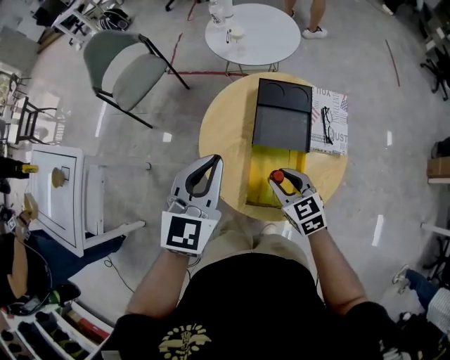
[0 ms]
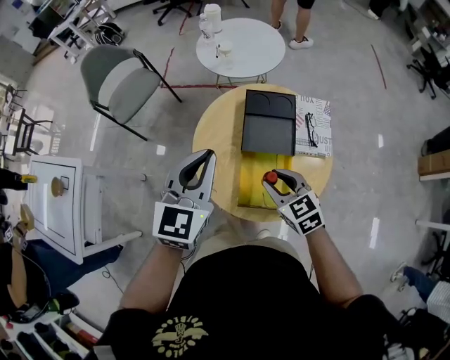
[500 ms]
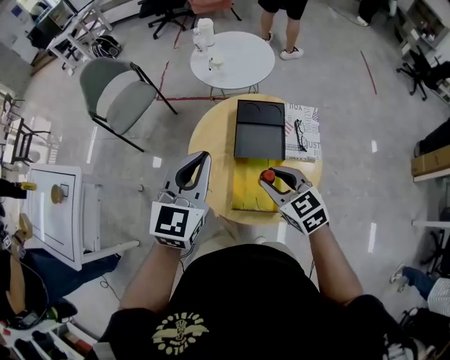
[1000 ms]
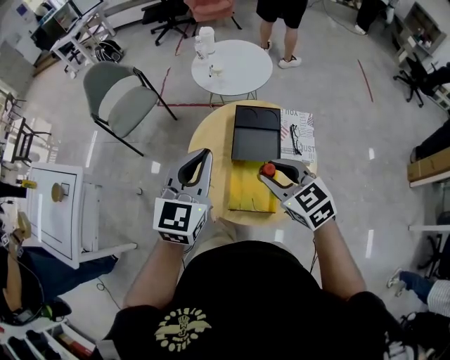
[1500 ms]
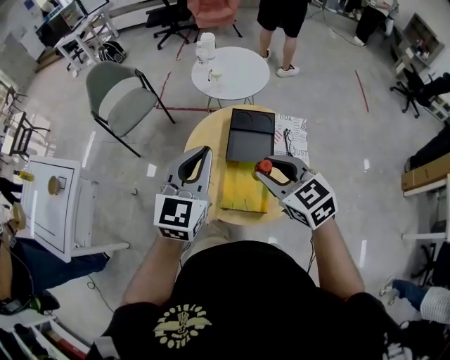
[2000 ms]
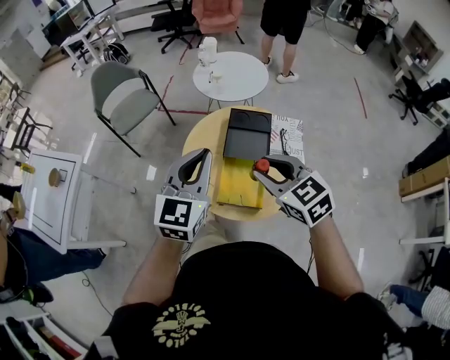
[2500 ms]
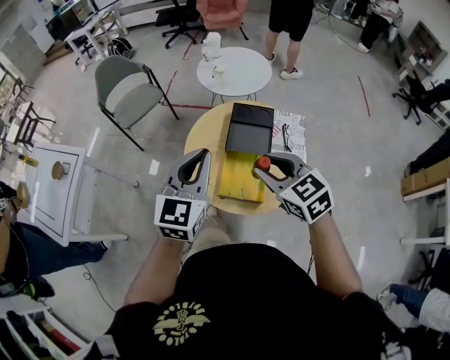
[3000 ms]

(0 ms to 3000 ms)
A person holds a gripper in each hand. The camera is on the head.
0 ms - 1500 ms: The left gripper shifts roughly 10 cm upward, while the right gripper shifts about 20 cm upward.
1500 ms - 3000 ms: Both grippers travel together backward, roughly 5 cm.

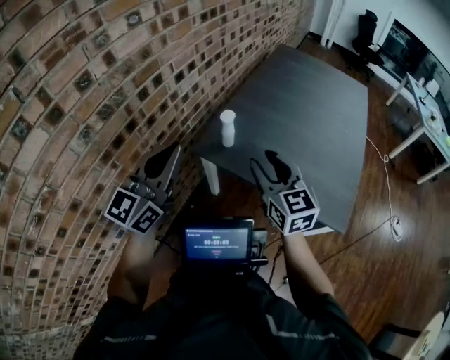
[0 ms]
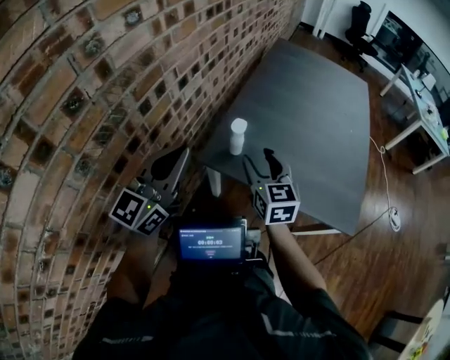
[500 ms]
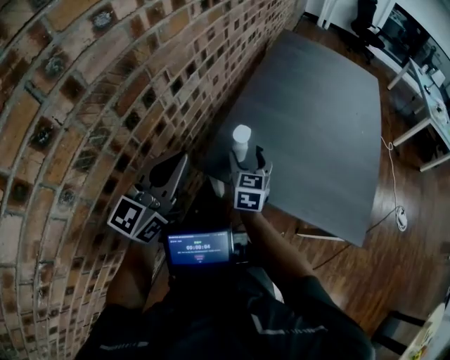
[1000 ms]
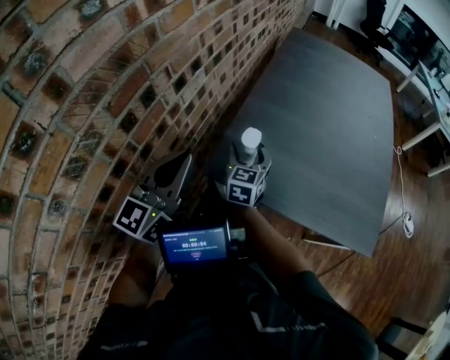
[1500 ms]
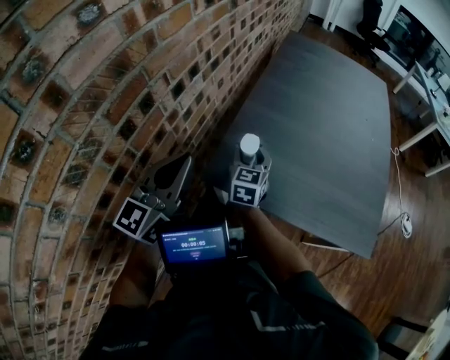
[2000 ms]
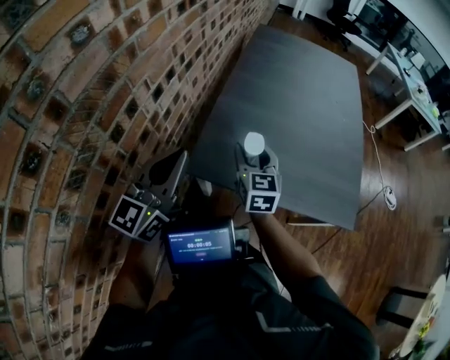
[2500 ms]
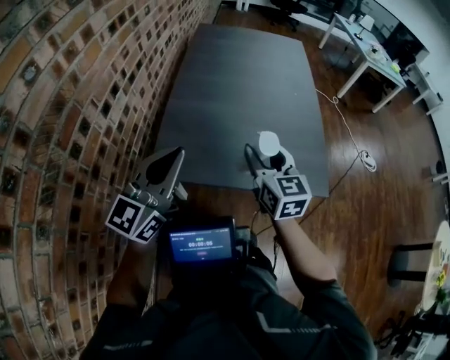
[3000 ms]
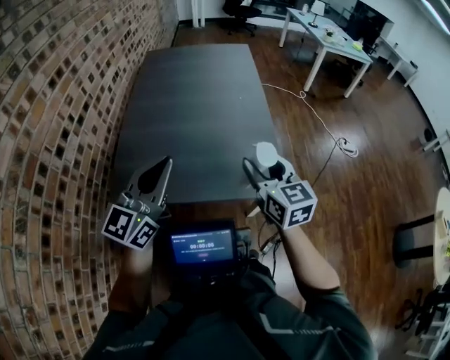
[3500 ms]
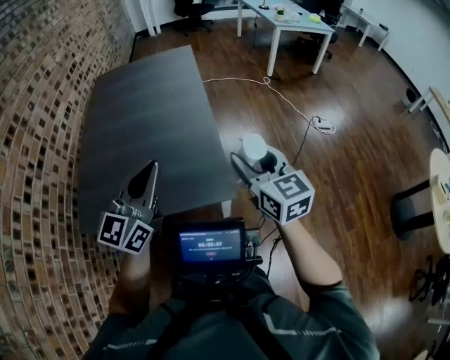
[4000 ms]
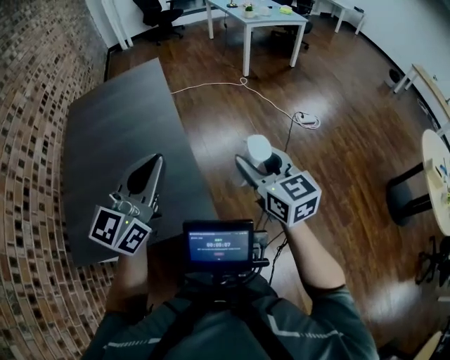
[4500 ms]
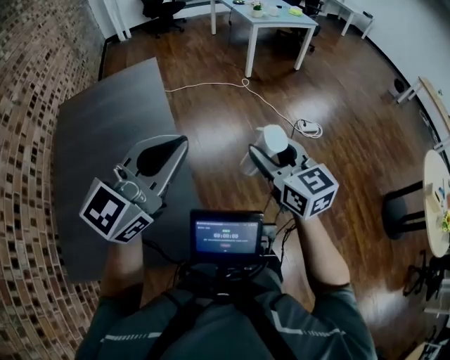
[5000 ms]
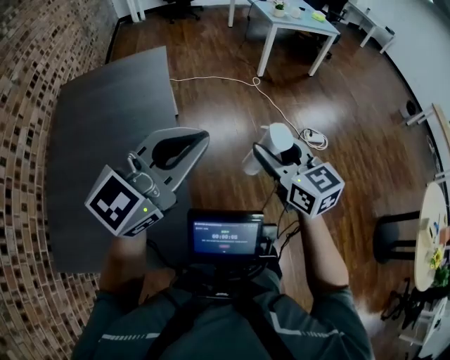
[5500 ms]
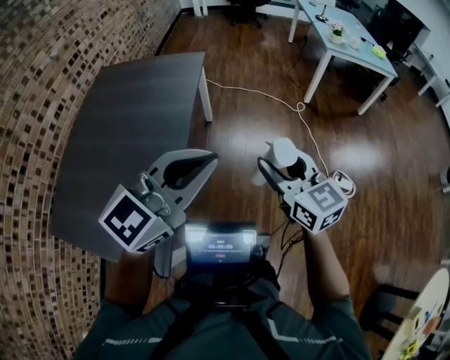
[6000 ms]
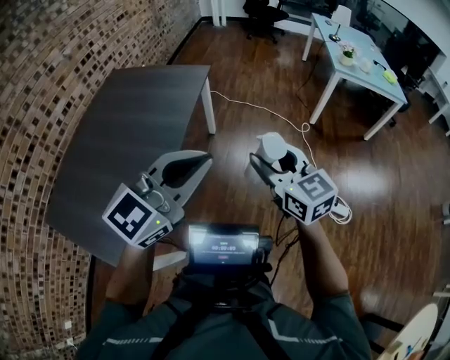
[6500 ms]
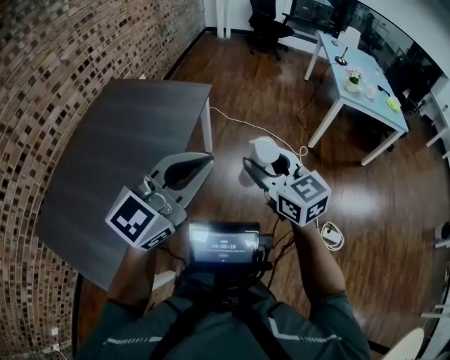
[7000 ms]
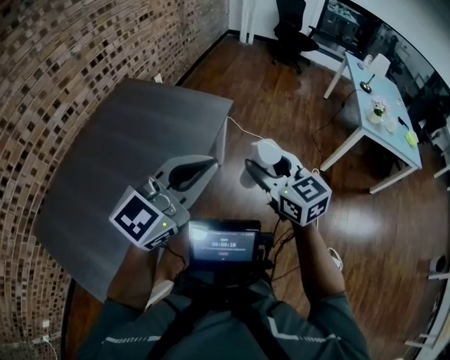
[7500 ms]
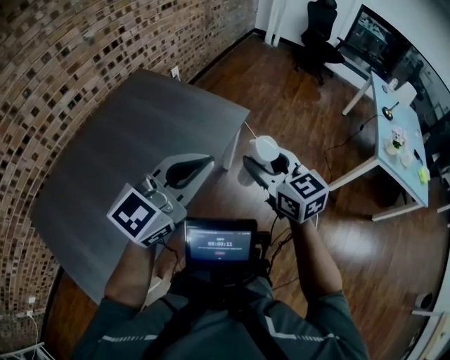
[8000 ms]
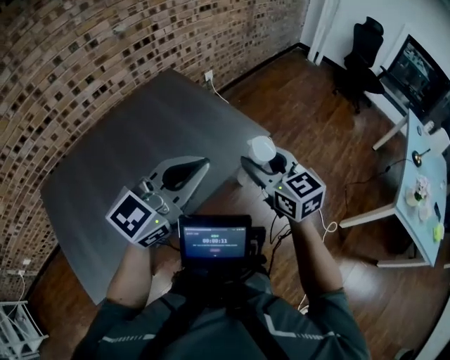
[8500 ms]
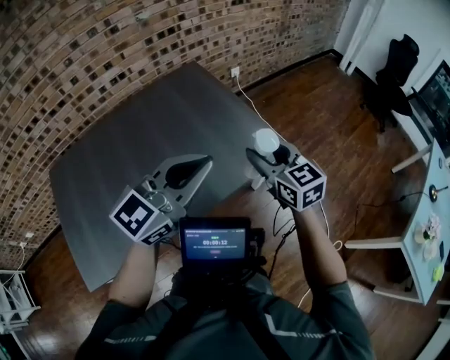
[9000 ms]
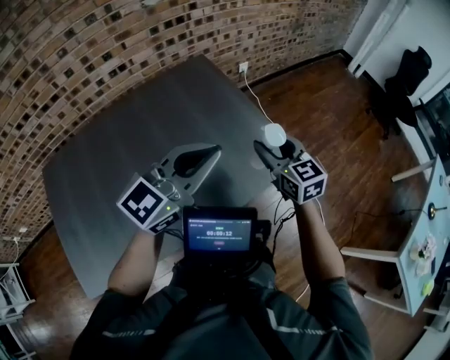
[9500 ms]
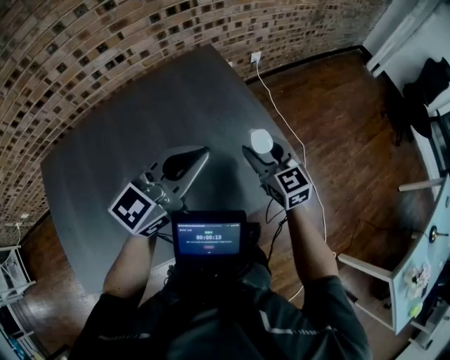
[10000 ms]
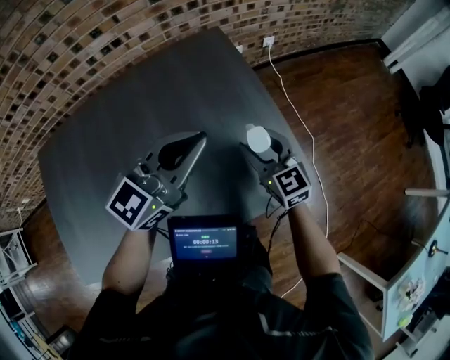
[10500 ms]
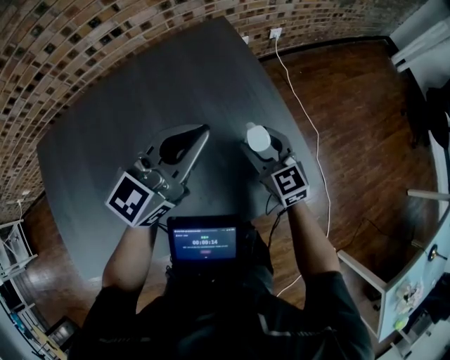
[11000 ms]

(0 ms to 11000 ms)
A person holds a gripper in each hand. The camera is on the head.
0 ms - 2000 ms: The left gripper heads forward, downward and to the left, covering approximately 20 cm. The right gripper shifts roughly 35 cm forward, downward and to the left, and turns by about 30 degrees.
2000 ms - 3500 ms: The right gripper heads to the right and upward, covering some 50 cm, while the left gripper moves to the right, roughly 35 cm, and changes its angle by some 30 degrees.
3500 ms - 5500 ms: The pair of grippers is taken to the right and forward, some 50 cm. The left gripper changes its angle by approximately 30 degrees.
5500 ms - 7500 ms: The left gripper moves about 35 cm, and swivels about 40 degrees. Meanwhile the right gripper ends up about 40 cm from where it was, and changes its angle by about 40 degrees.
7500 ms - 9000 ms: The left gripper moves some 25 cm, and rotates about 30 degrees. The right gripper shifts by about 30 cm, and swivels some 30 degrees.
9000 ms - 11000 ms: The left gripper moves forward, approximately 30 cm, while the right gripper moves forward, downward and to the left, roughly 30 cm.

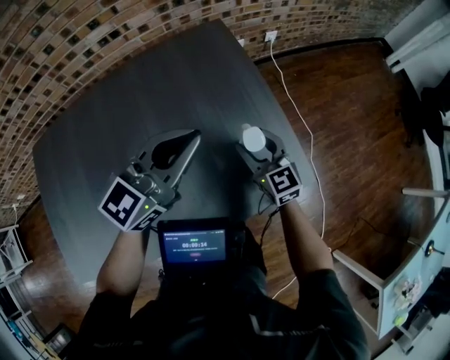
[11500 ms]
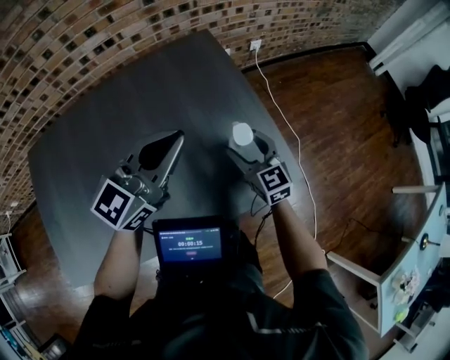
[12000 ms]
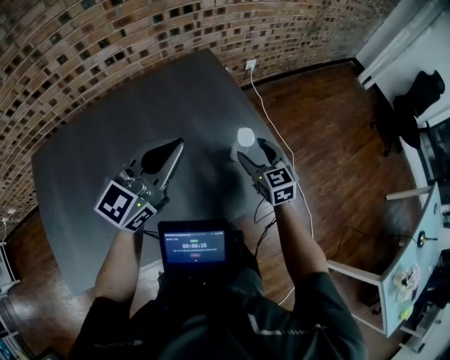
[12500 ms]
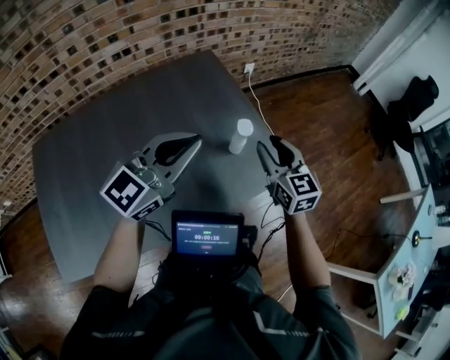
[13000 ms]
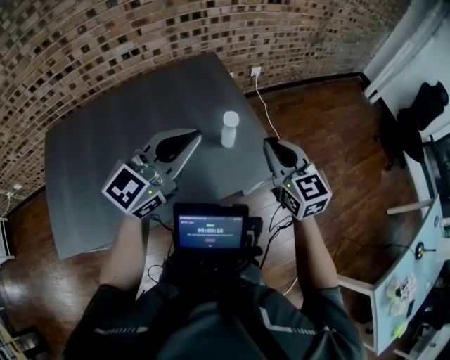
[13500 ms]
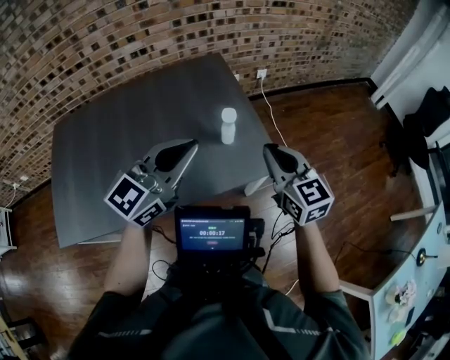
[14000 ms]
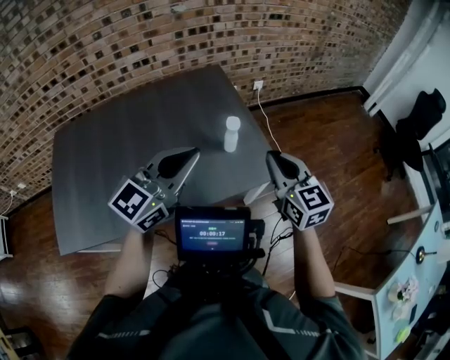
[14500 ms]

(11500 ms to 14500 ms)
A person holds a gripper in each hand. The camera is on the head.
11500 ms - 13000 ms: The right gripper moves upward, backward and to the right, about 20 cm; the left gripper is displaced backward and upward by some 15 cm.
13000 ms - 14500 ms: The left gripper travels to the right and backward by approximately 10 cm; the right gripper goes roughly 15 cm to the right, backward and upward, and closes its fingers.

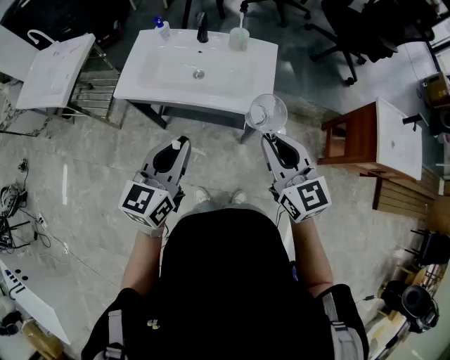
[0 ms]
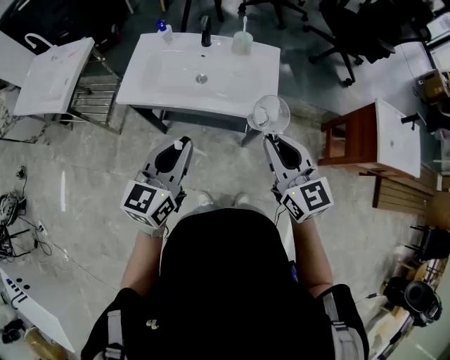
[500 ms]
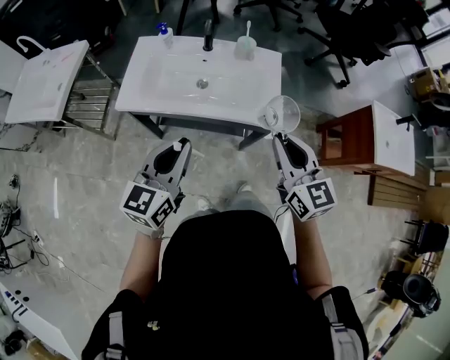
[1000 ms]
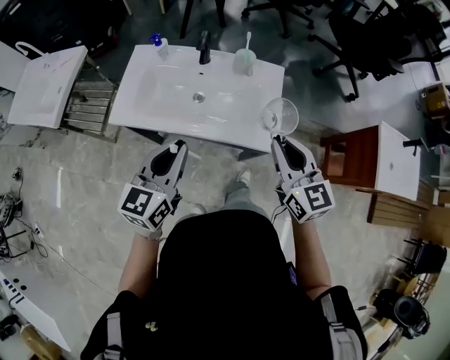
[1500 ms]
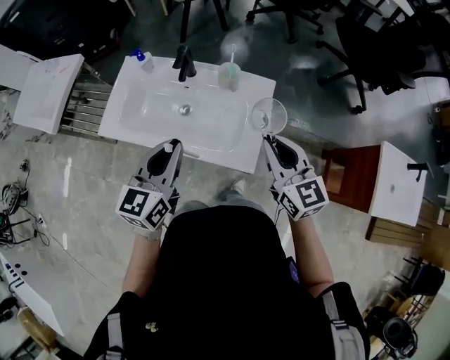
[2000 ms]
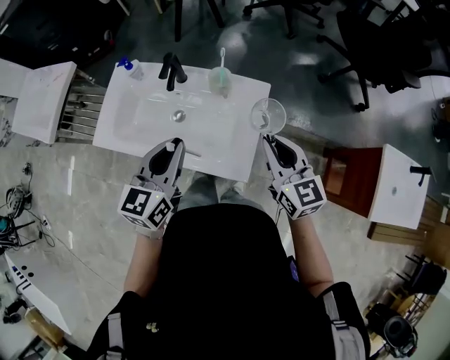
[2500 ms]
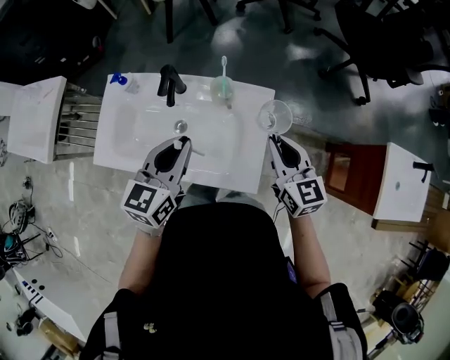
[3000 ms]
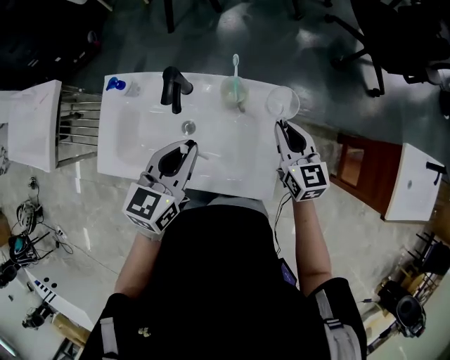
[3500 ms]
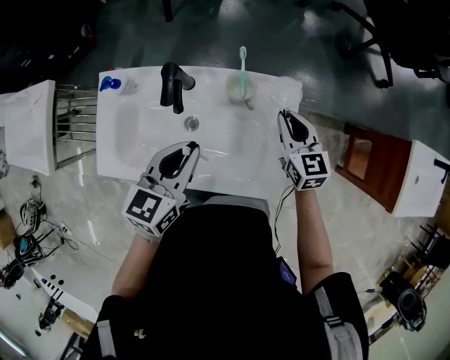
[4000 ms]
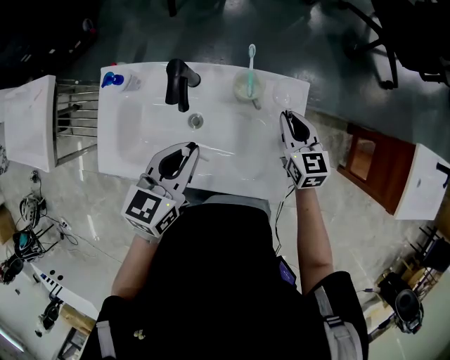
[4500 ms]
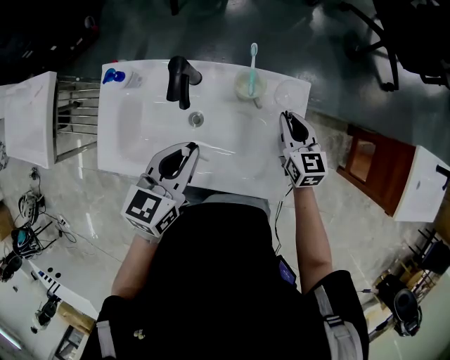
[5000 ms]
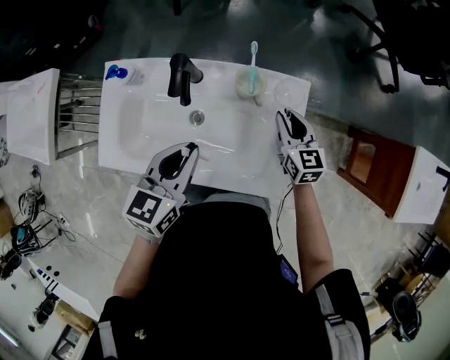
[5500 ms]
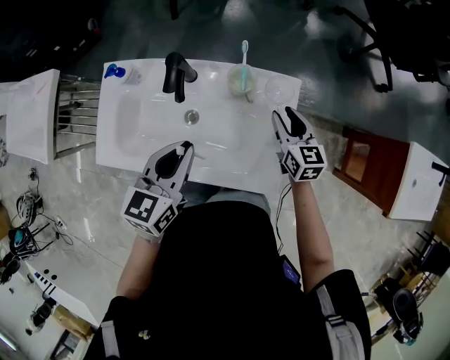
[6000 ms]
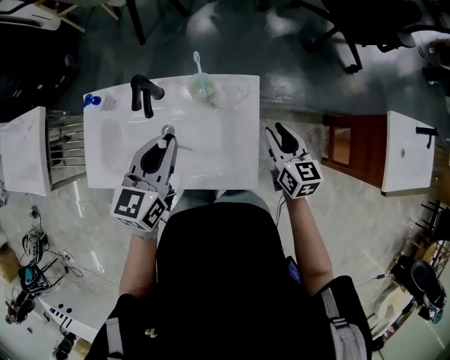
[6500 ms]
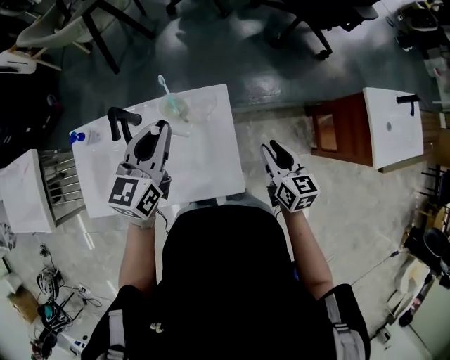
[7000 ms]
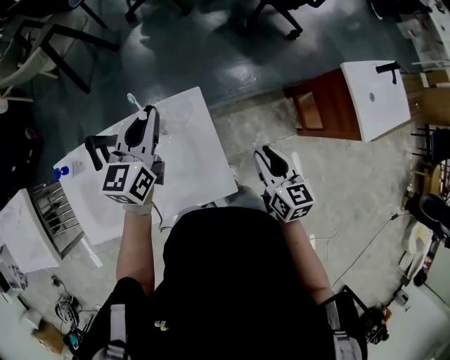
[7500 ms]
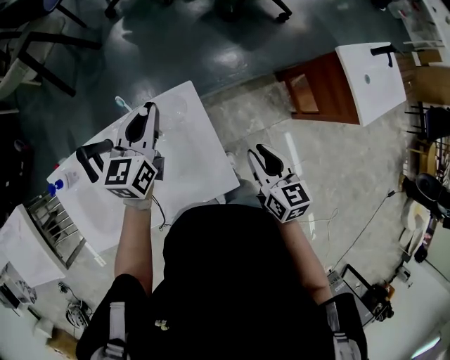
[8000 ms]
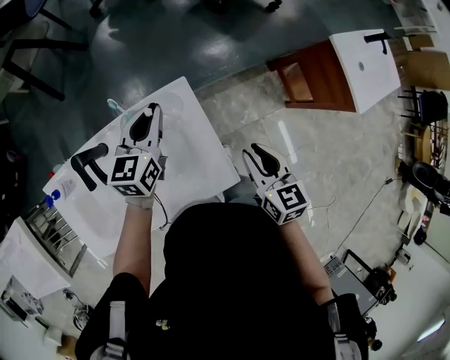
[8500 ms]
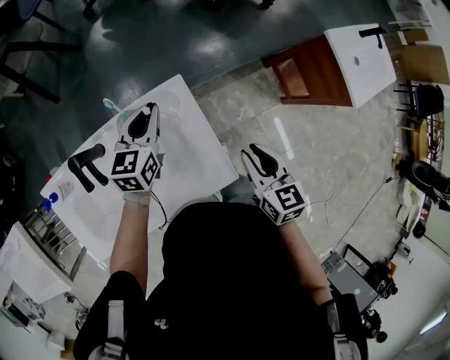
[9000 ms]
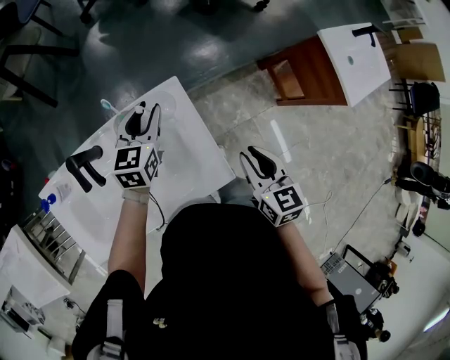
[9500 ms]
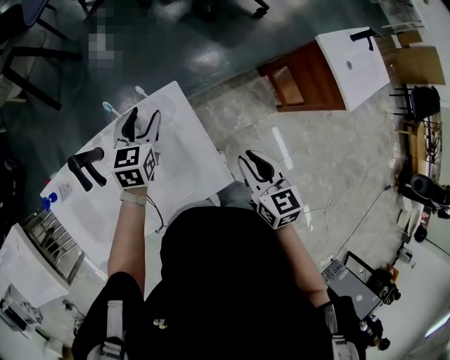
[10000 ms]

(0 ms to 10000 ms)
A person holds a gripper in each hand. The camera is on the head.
0 ms - 2000 ms: Both grippers move forward, roughly 20 cm.
2000 ms - 4000 ms: Both grippers move forward and downward, some 20 cm. The left gripper rotates some 20 degrees; the right gripper changes its angle by roughly 20 degrees.
4000 ms - 6000 ms: The right gripper opens its fingers.
6000 ms - 8000 ms: The left gripper is displaced forward and to the right by roughly 25 cm, and rotates about 20 degrees, while the right gripper travels to the right, backward and upward by about 20 cm, and rotates some 30 degrees.
8000 ms - 10000 ms: The left gripper travels downward by approximately 10 cm, and opens up.
